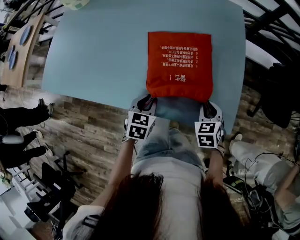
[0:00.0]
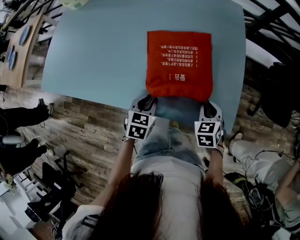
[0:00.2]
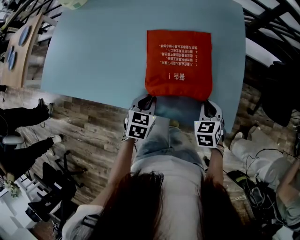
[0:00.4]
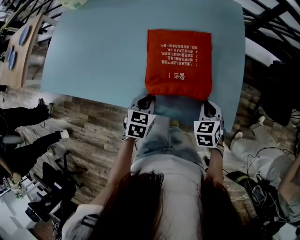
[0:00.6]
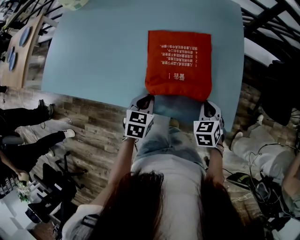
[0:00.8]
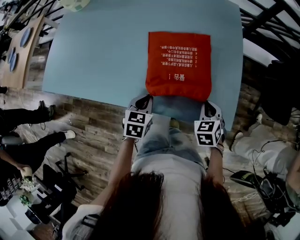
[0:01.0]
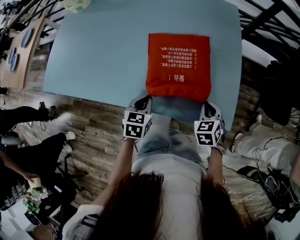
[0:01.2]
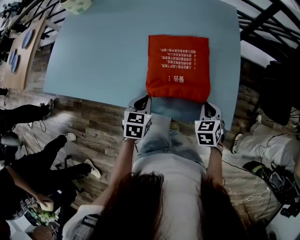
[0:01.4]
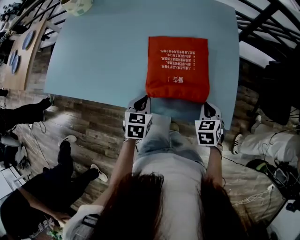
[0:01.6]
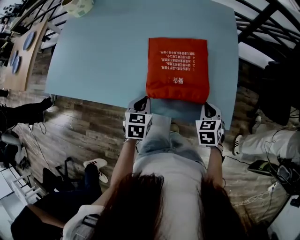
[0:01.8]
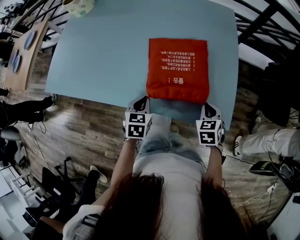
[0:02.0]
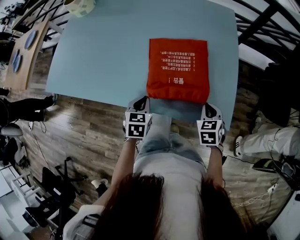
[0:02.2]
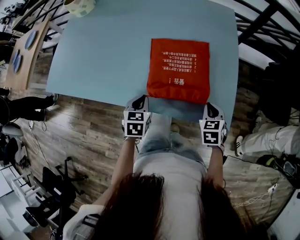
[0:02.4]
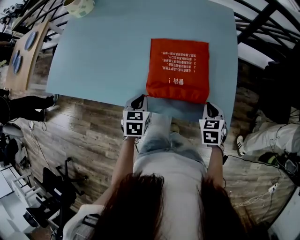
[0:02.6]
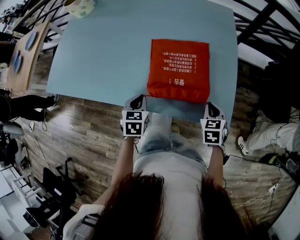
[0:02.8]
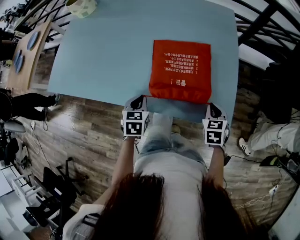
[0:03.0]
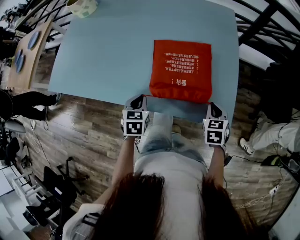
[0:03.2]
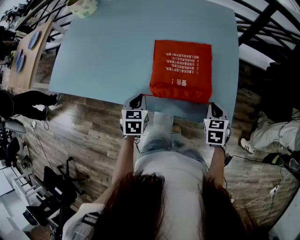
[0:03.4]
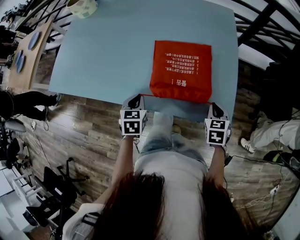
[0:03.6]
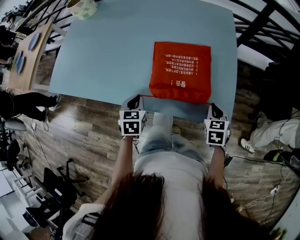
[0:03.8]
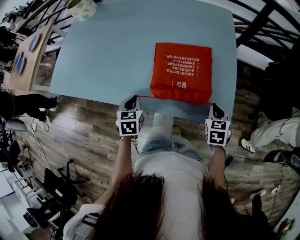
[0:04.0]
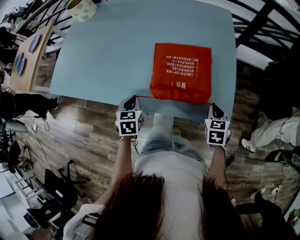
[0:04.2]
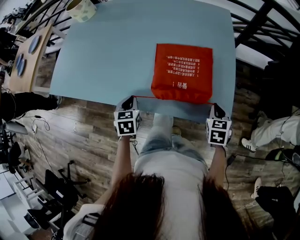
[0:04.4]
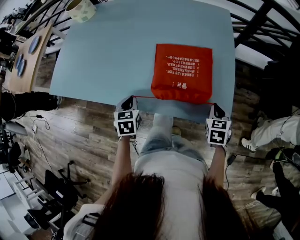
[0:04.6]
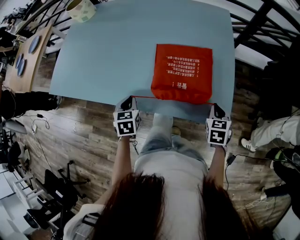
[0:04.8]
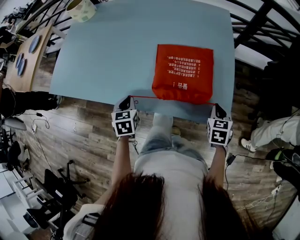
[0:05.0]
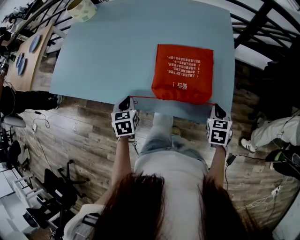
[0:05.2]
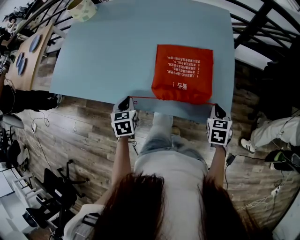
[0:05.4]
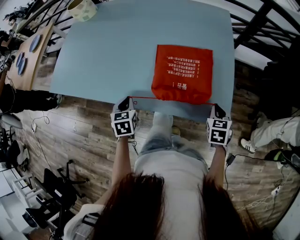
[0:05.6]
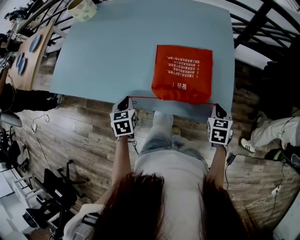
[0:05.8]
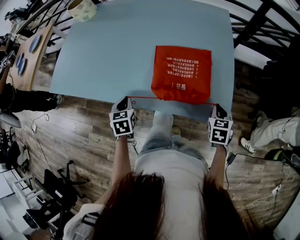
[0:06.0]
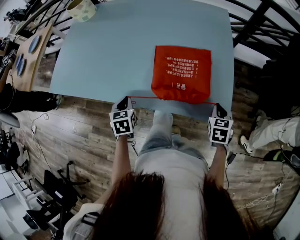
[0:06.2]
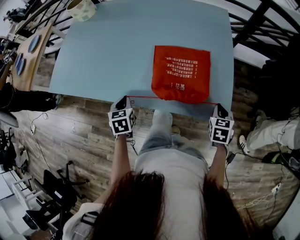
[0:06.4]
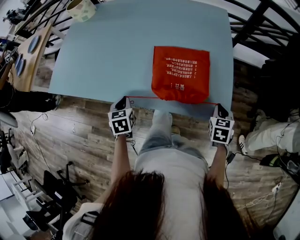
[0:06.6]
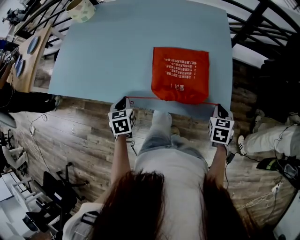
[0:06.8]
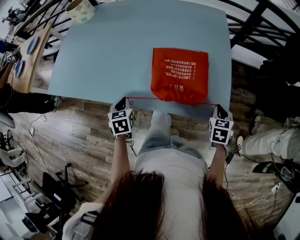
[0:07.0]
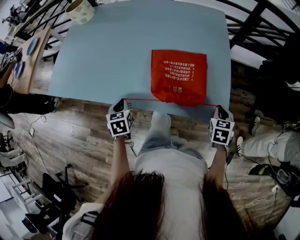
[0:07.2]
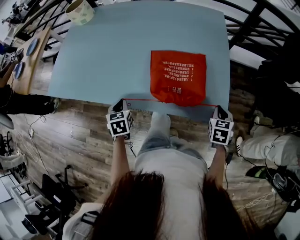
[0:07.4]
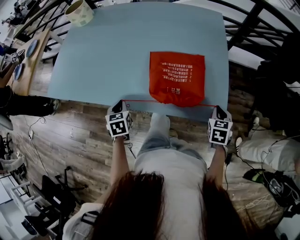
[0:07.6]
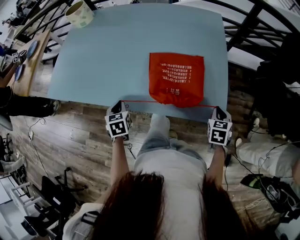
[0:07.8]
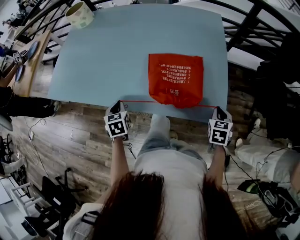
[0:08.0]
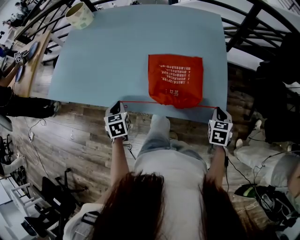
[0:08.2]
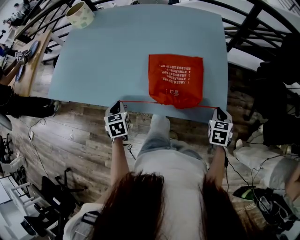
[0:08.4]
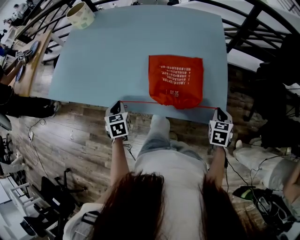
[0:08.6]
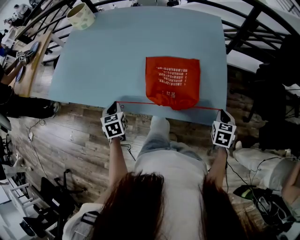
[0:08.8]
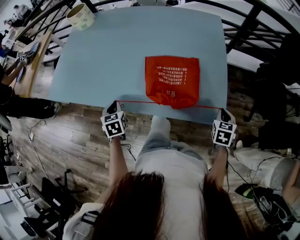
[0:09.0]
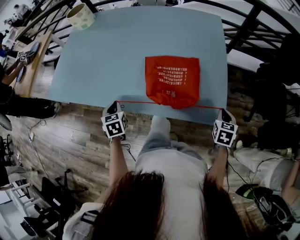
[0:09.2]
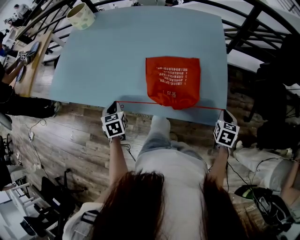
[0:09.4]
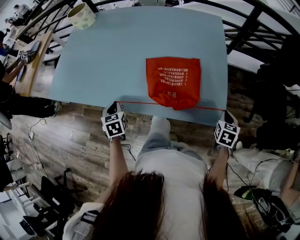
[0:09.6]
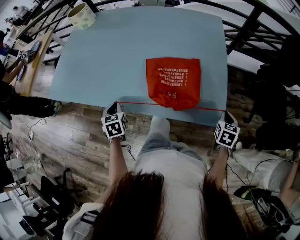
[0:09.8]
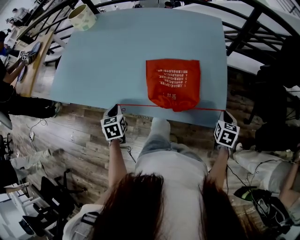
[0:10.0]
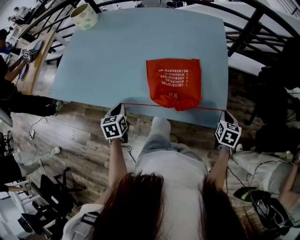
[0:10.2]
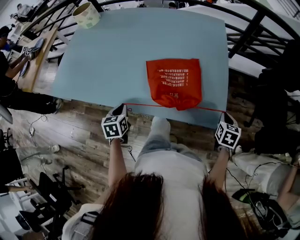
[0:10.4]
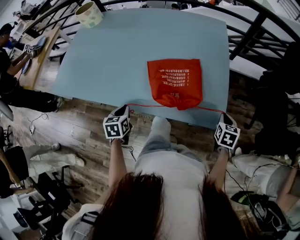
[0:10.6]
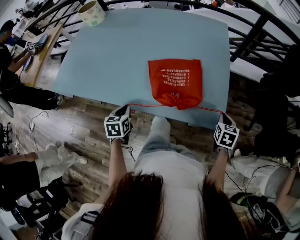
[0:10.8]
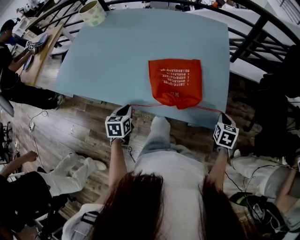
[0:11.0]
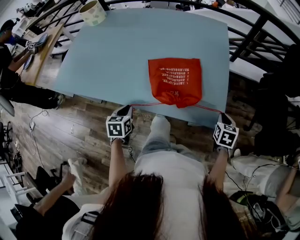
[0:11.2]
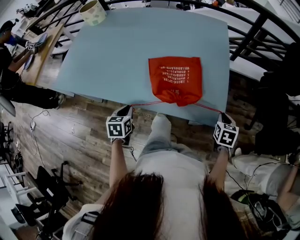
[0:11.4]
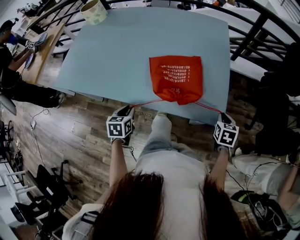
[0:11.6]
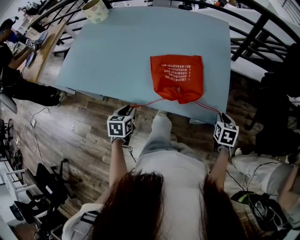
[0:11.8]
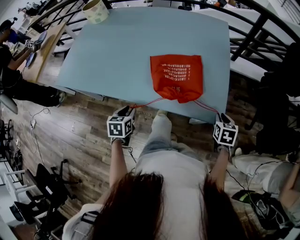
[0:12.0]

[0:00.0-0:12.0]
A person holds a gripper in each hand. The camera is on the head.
0:00.0 to 0:03.0: The grippers move only a little.
0:03.0 to 0:04.4: The grippers make only small movements.
0:04.4 to 0:07.6: There are only small adjustments of the grippers.
0:07.6 to 0:10.4: There are only small adjustments of the grippers.
0:10.4 to 0:12.0: The left gripper moves backward, some 5 cm, and opens up.

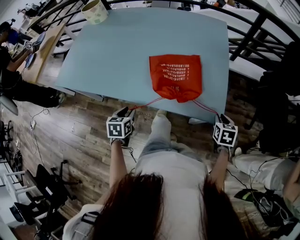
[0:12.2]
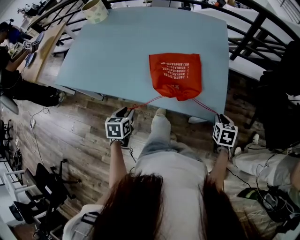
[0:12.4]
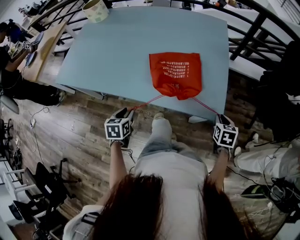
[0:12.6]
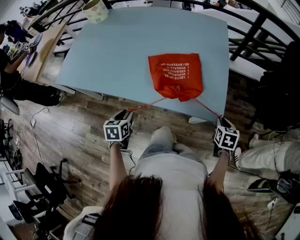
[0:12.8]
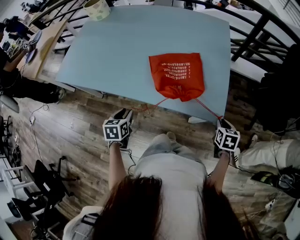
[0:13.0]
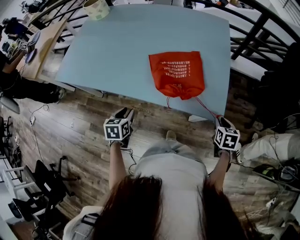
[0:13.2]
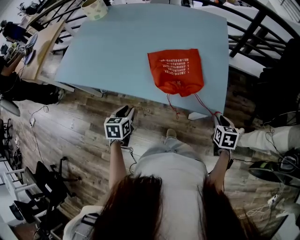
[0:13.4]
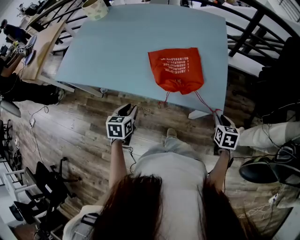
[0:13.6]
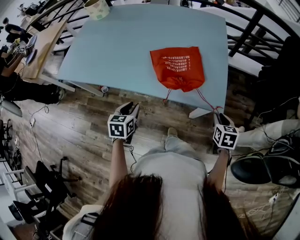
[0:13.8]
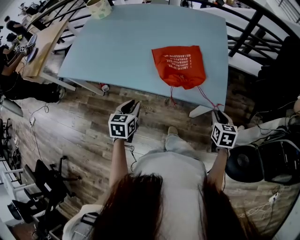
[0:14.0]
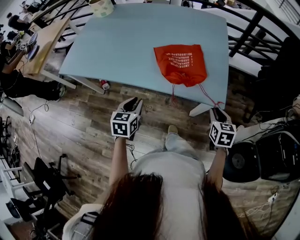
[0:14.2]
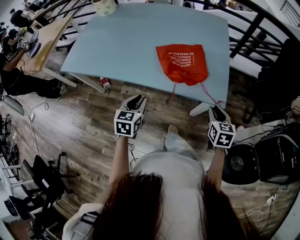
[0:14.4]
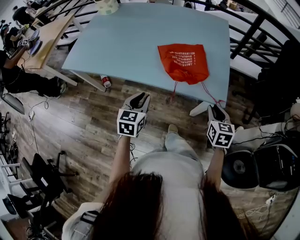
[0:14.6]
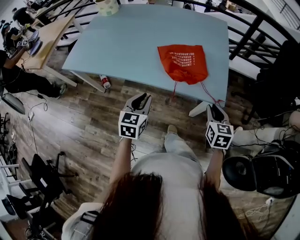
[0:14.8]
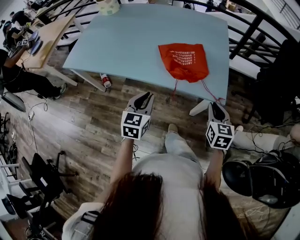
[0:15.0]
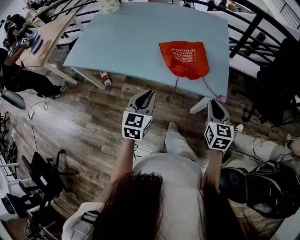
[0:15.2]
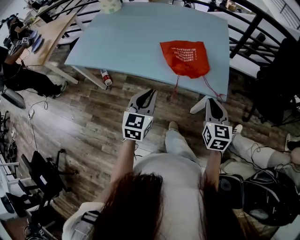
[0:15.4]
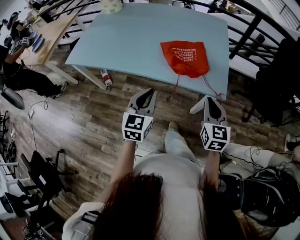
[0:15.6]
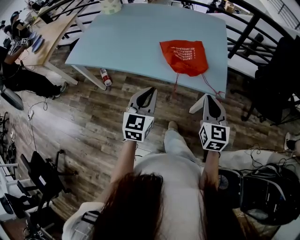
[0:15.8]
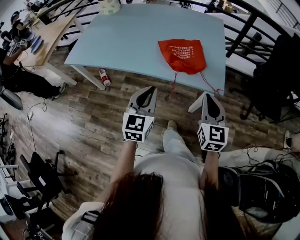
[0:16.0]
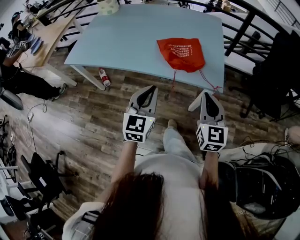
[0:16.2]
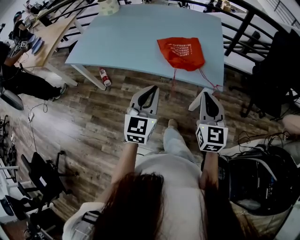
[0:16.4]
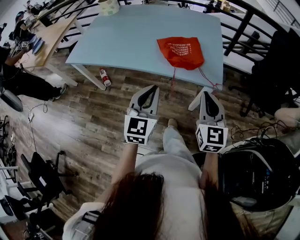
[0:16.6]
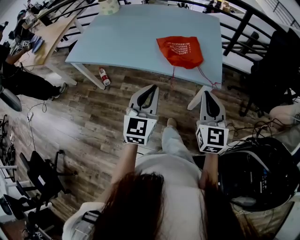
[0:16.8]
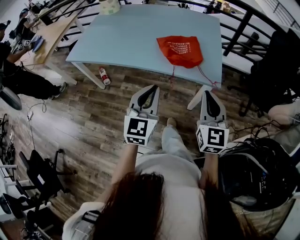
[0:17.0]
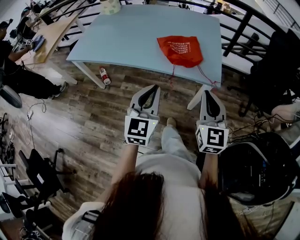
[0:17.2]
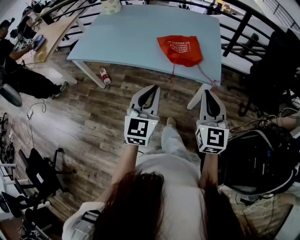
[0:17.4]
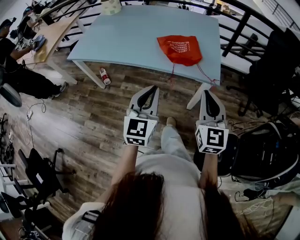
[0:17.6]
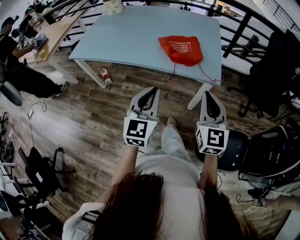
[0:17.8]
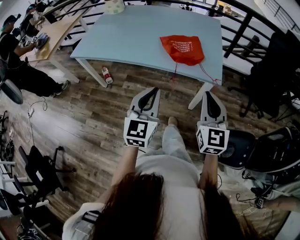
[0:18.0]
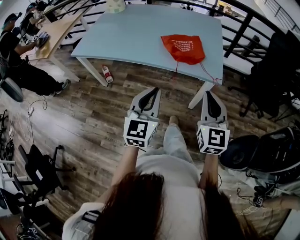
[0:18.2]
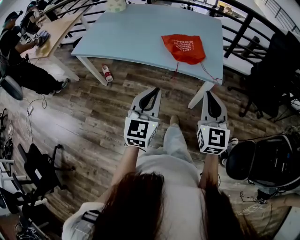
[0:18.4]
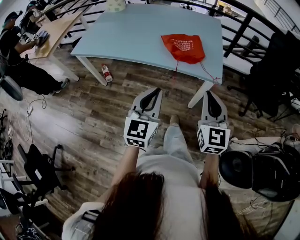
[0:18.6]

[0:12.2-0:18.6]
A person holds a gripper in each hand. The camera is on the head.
0:12.2 to 0:13.8: The left gripper moves about 5 cm. Meanwhile the right gripper heads backward, covering about 5 cm.
0:13.8 to 0:15.4: The right gripper heads upward, to the left and backward, covering about 20 cm, and rotates roughly 30 degrees, while the left gripper travels upward, backward and to the right by roughly 15 cm, and rotates approximately 30 degrees.
0:15.4 to 0:17.0: The grippers both shift backward and upward by approximately 10 cm.
0:17.0 to 0:18.6: Both grippers move backward, some 5 cm.

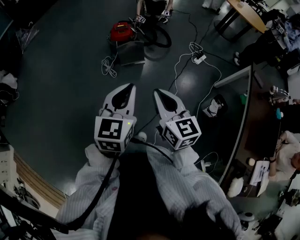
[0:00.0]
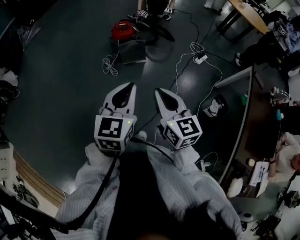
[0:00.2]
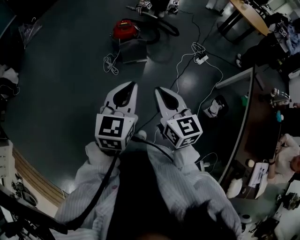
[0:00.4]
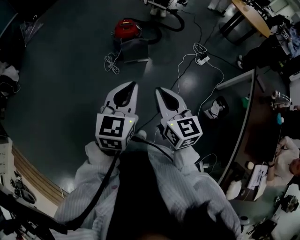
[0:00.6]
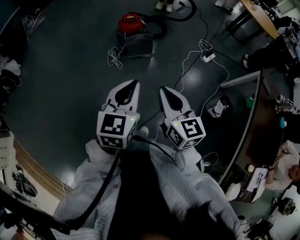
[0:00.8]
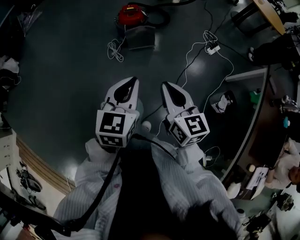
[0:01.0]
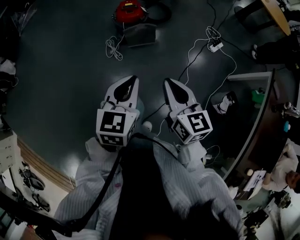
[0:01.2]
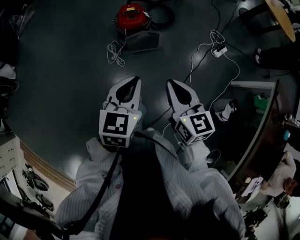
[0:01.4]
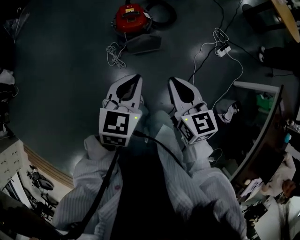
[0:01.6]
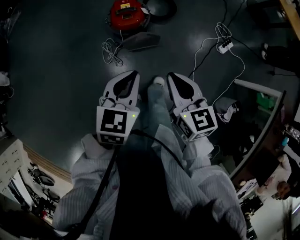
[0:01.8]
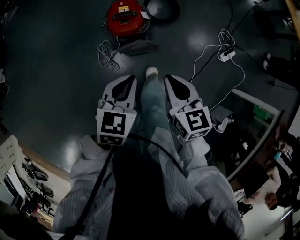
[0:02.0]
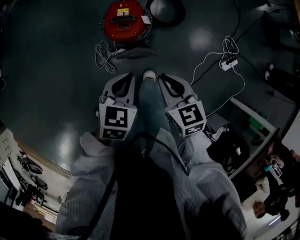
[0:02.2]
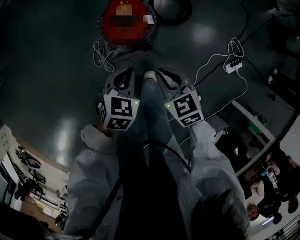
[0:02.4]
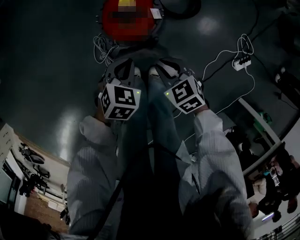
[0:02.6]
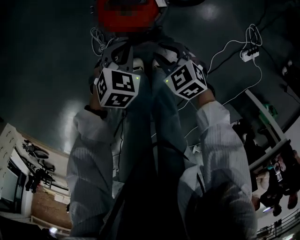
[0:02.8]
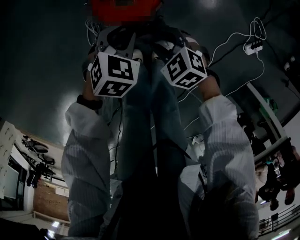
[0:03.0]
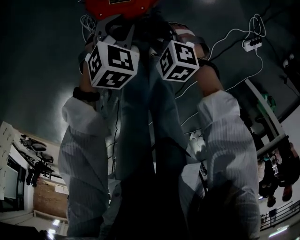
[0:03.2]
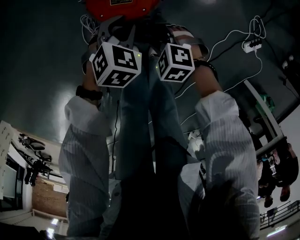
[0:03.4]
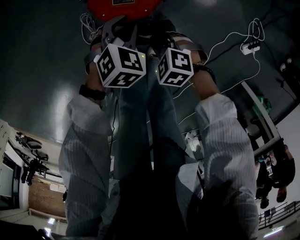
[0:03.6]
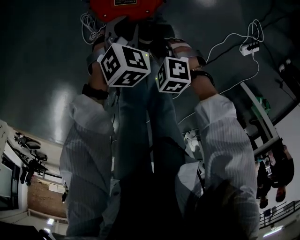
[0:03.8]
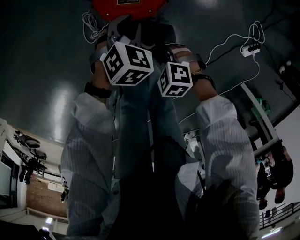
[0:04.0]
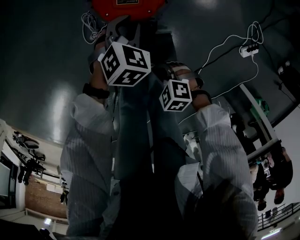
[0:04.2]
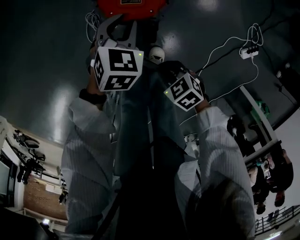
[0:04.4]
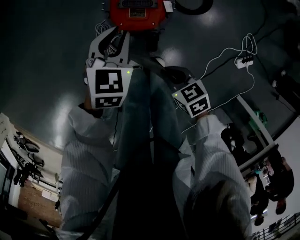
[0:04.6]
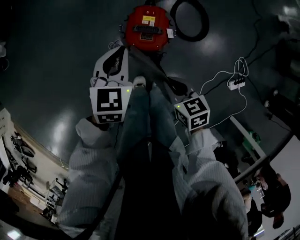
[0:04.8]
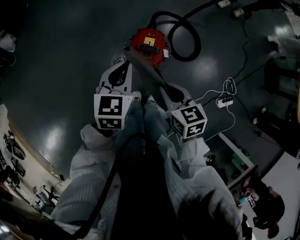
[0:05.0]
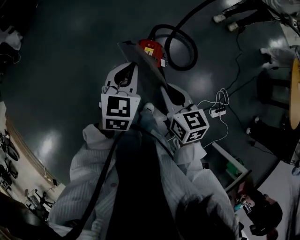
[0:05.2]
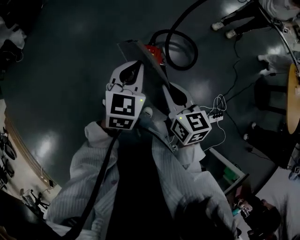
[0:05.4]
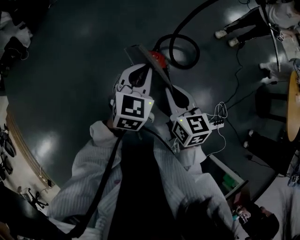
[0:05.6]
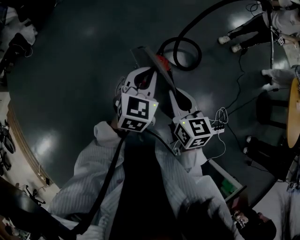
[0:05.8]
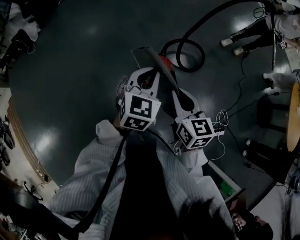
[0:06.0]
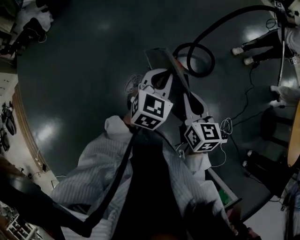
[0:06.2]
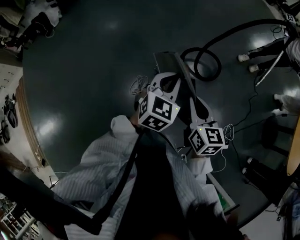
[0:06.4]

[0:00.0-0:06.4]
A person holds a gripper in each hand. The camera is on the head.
0:00.0 to 0:01.6: Both grippers move forward, about 40 cm.
0:01.6 to 0:03.2: Both grippers travel together downward, approximately 50 cm. The right gripper tips its fingers downward by some 40 degrees, and opens up. The left gripper turns by about 30 degrees, and opens.
0:03.2 to 0:04.8: The two grippers go approximately 30 cm upward. The left gripper rotates about 40 degrees, and closes its fingers, while the right gripper rolls clockwise, seen from behind, by approximately 40 degrees, and closes up.
0:04.8 to 0:06.4: Both grippers move upward, roughly 30 cm. The right gripper turns by about 20 degrees.
